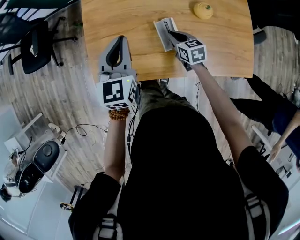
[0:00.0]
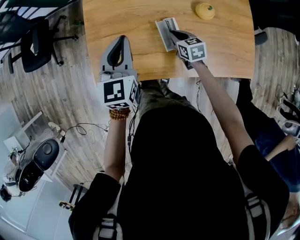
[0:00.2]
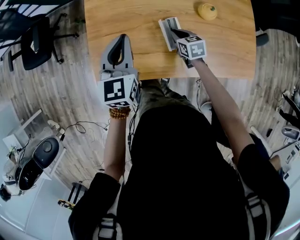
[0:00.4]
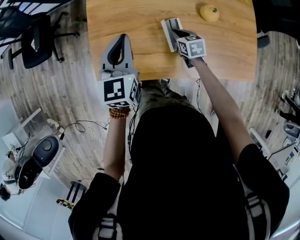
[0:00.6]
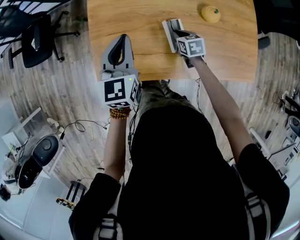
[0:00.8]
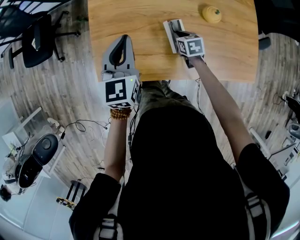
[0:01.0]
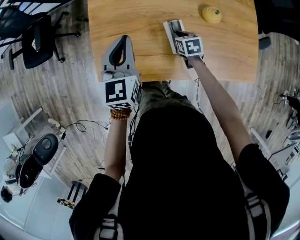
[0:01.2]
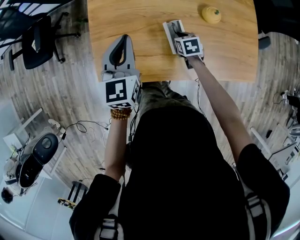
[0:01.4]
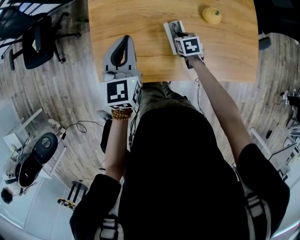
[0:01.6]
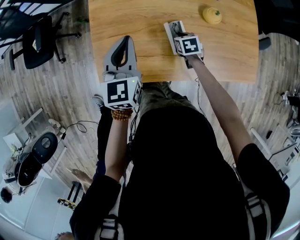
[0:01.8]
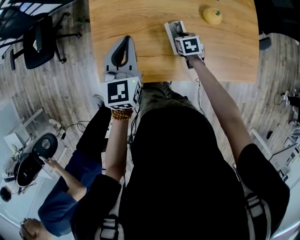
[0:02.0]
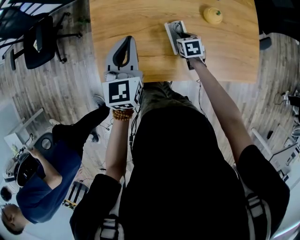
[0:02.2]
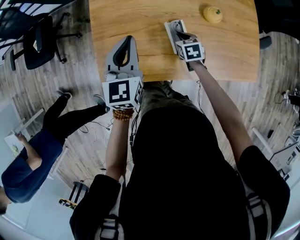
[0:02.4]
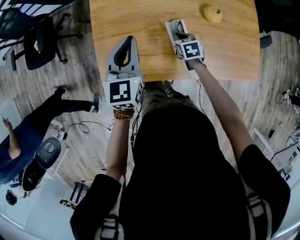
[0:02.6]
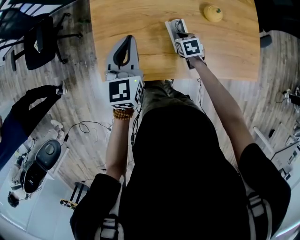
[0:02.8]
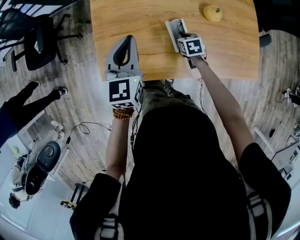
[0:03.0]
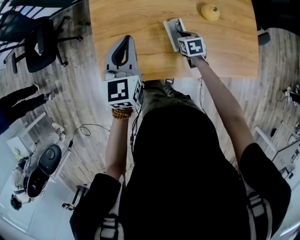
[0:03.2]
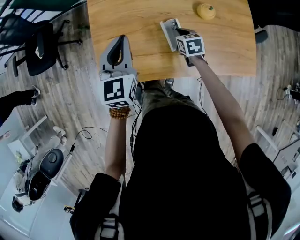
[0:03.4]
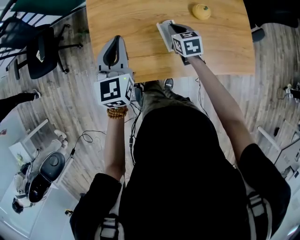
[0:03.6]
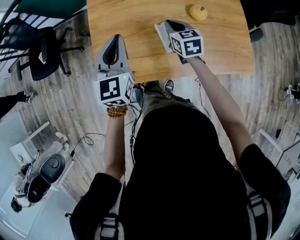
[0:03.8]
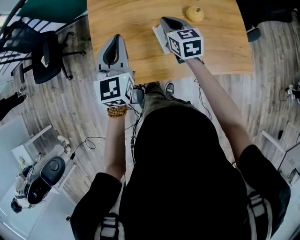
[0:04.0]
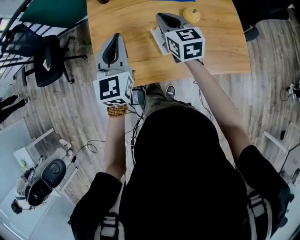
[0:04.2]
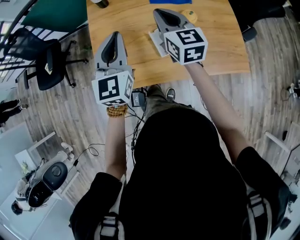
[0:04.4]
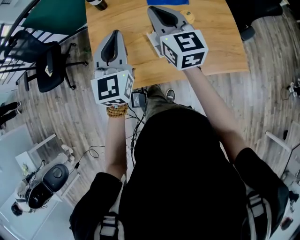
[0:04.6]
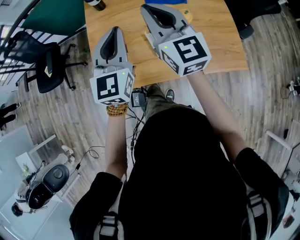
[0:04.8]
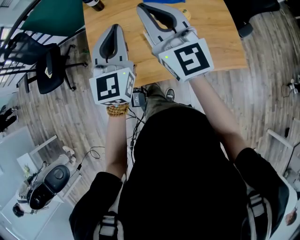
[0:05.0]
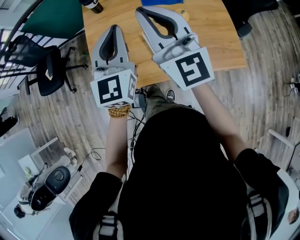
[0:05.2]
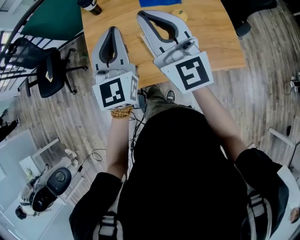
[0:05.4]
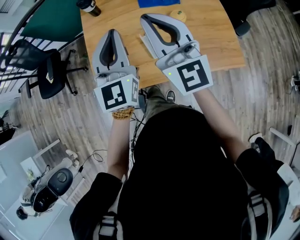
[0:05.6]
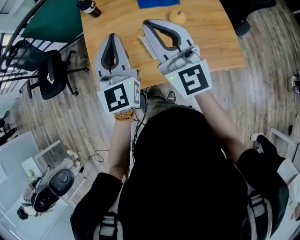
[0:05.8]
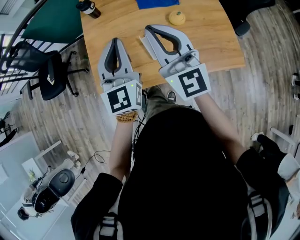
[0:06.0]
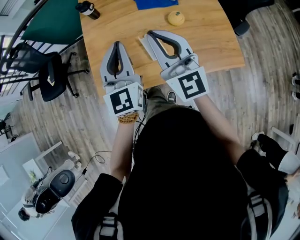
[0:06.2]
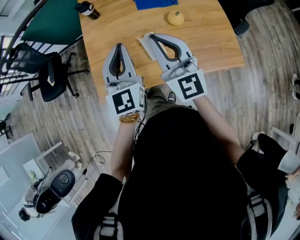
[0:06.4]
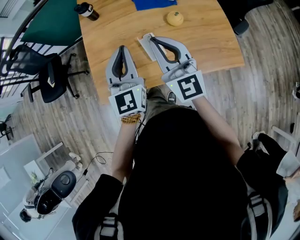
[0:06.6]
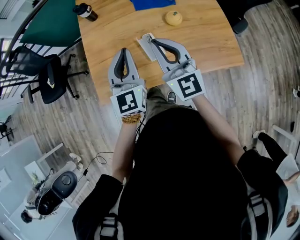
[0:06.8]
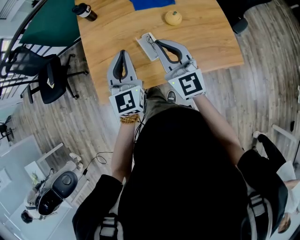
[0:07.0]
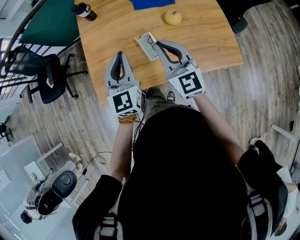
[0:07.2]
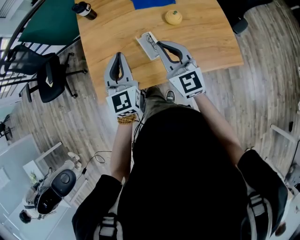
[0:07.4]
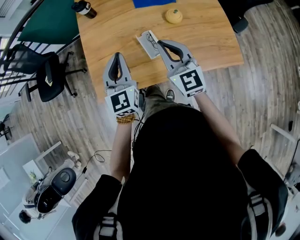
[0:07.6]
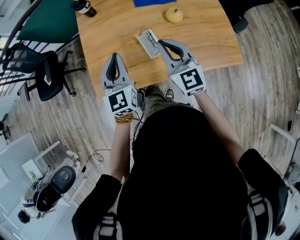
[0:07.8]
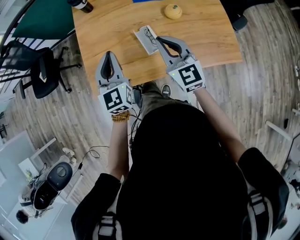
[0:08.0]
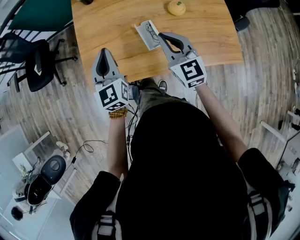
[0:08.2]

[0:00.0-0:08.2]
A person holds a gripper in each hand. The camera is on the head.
0:00.0 to 0:01.6: The right gripper changes place by roughly 5 cm, and swivels approximately 20 degrees.
0:01.6 to 0:03.2: The grippers make only small movements.
0:03.2 to 0:05.0: The left gripper moves upward and to the right, about 20 cm; the right gripper shifts some 50 cm upward, and tips its fingers upward by roughly 70 degrees.
0:05.0 to 0:06.6: The left gripper moves about 5 cm. Meanwhile the right gripper travels downward and backward by approximately 10 cm.
0:06.6 to 0:08.2: The right gripper is displaced downward by some 10 cm, and swivels some 20 degrees; the left gripper is displaced downward and to the left by about 10 cm.

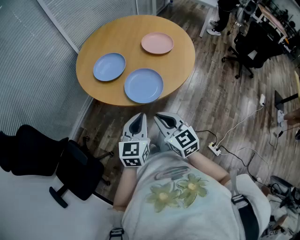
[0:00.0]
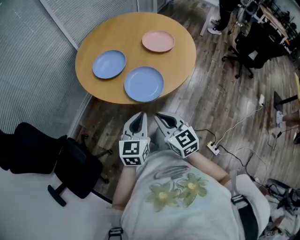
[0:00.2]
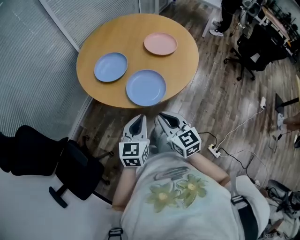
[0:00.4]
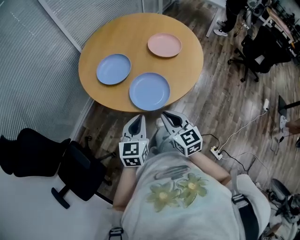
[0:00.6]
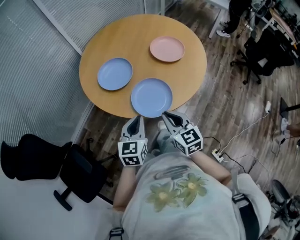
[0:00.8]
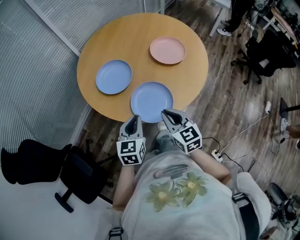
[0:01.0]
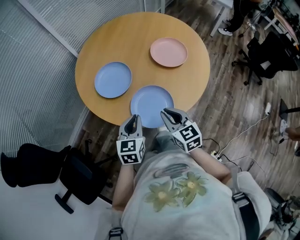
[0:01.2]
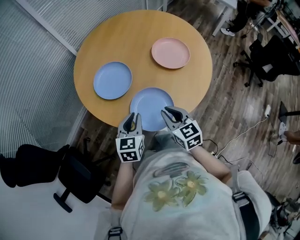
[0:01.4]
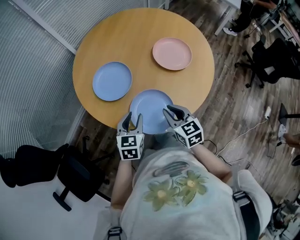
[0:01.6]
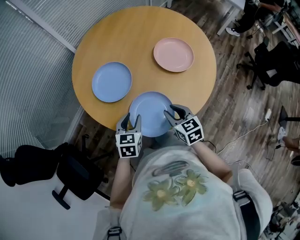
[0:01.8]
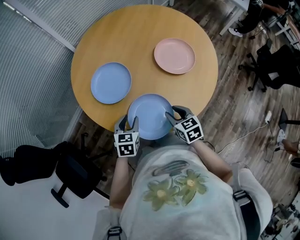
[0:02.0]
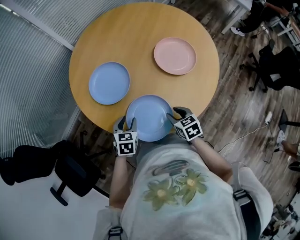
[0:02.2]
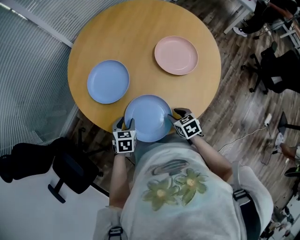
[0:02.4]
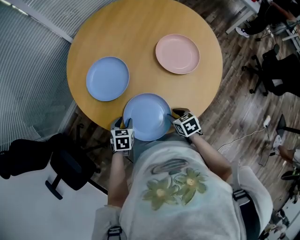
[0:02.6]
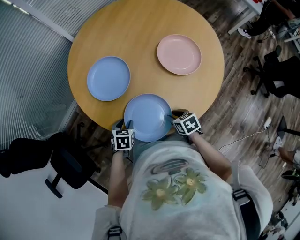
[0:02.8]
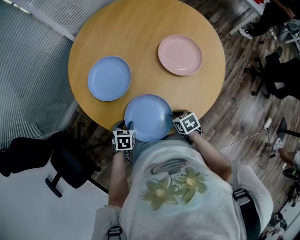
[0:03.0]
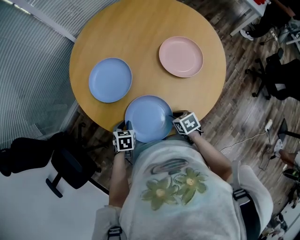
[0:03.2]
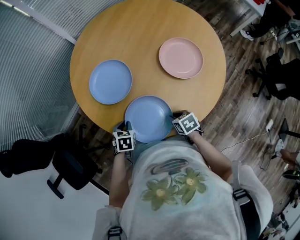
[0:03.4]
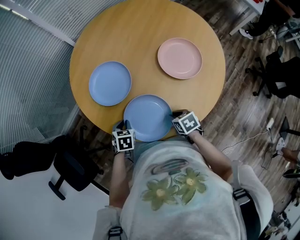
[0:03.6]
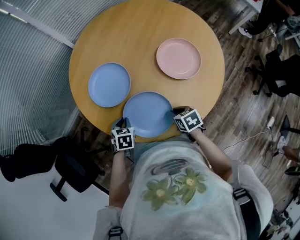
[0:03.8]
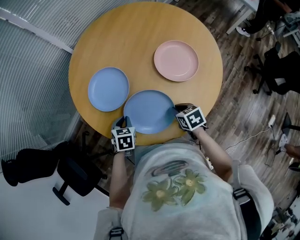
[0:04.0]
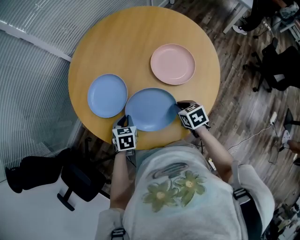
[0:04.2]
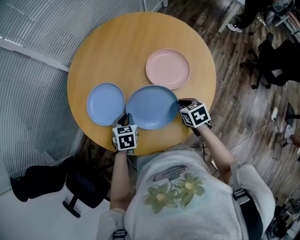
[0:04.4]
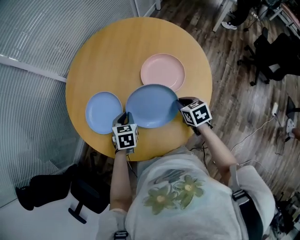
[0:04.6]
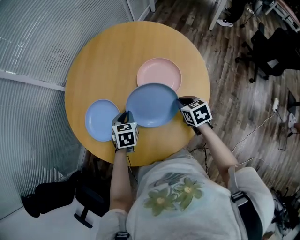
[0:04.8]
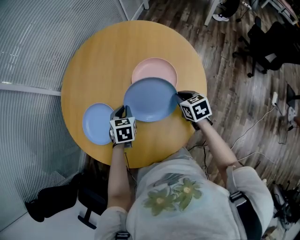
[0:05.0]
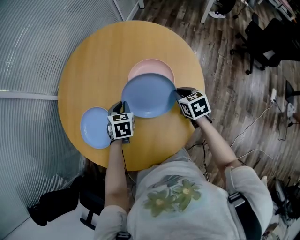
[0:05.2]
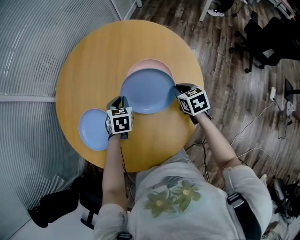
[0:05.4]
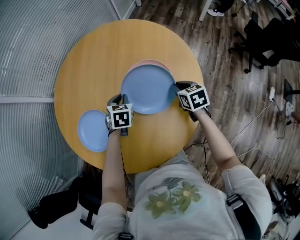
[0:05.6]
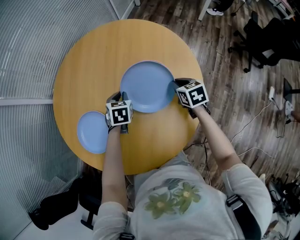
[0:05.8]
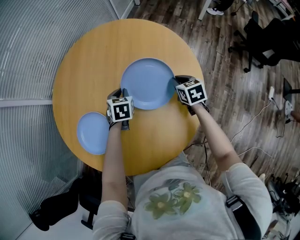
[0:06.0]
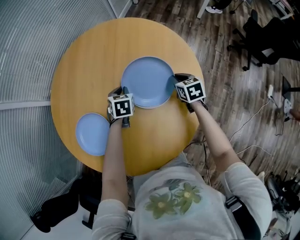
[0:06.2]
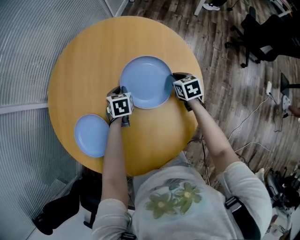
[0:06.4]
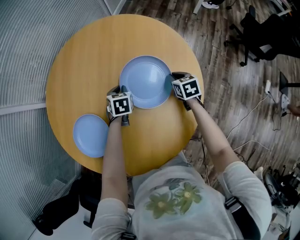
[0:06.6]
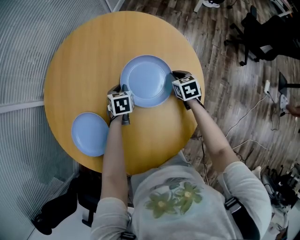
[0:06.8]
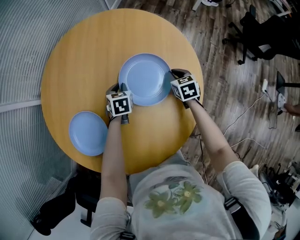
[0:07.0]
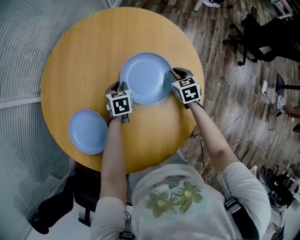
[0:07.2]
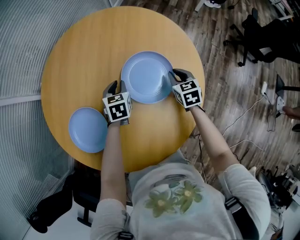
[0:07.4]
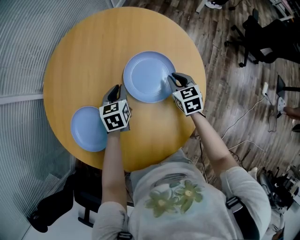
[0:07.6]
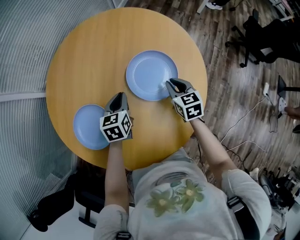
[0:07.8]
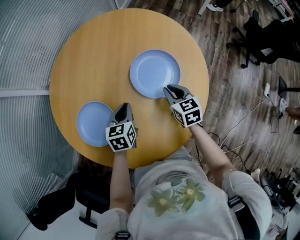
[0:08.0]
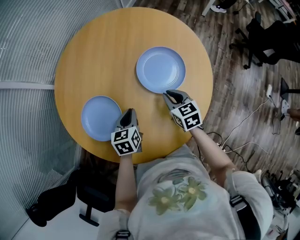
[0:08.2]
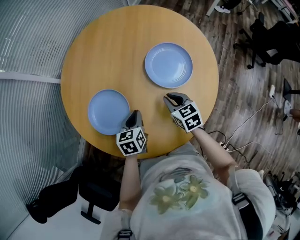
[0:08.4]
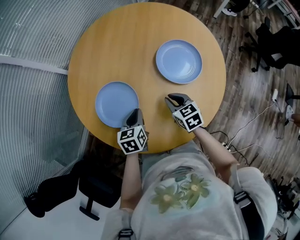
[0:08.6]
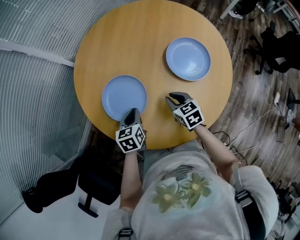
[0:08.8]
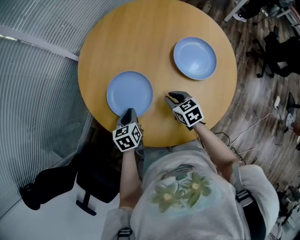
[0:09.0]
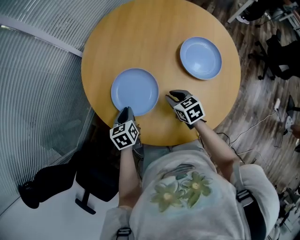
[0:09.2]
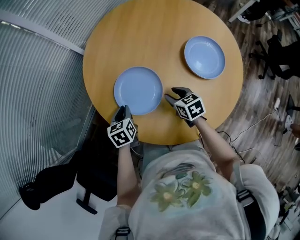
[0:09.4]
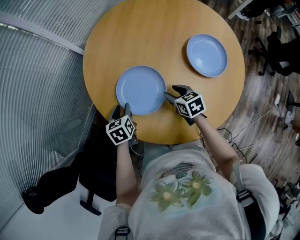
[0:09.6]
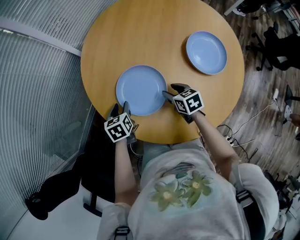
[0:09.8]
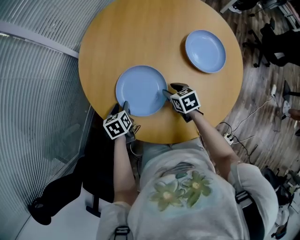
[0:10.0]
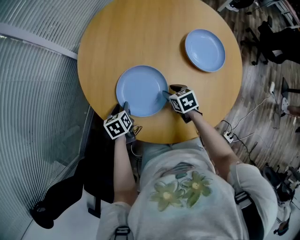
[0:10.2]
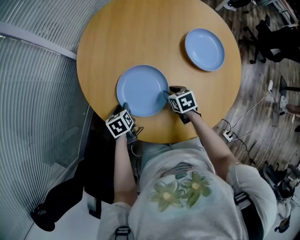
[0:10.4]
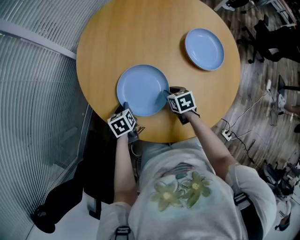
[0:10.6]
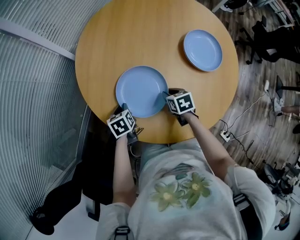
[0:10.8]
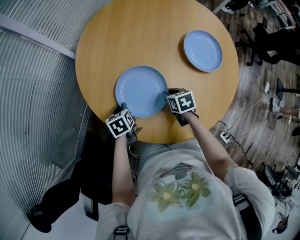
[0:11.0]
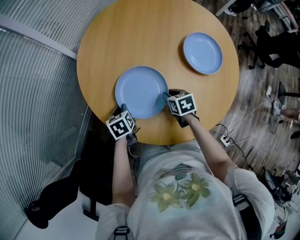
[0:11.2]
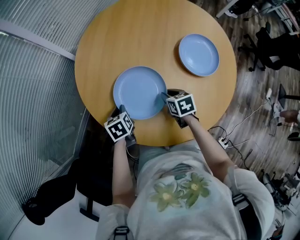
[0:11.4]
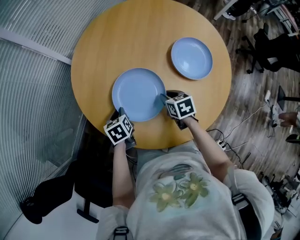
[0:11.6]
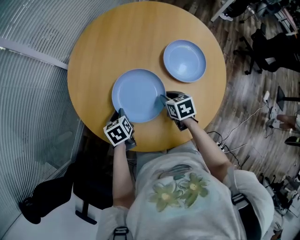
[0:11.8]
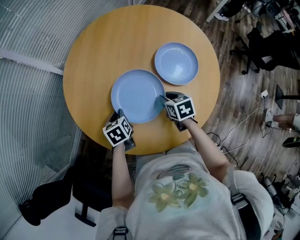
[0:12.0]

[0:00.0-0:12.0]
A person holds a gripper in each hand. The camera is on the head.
0:00.0 to 0:01.6: The two grippers go approximately 35 cm forward. The left gripper opens its fingers.
0:01.6 to 0:03.0: The left gripper moves downward, approximately 15 cm, and changes its angle by about 30 degrees. The right gripper heads downward and to the right, covering approximately 20 cm, and rotates some 40 degrees.
0:03.0 to 0:04.4: The right gripper heads to the right, upward and forward, covering roughly 20 cm. Meanwhile the left gripper shifts roughly 20 cm to the right, forward and upward, and closes up.
0:04.4 to 0:06.0: The two grippers go about 30 cm forward and to the right.
0:06.0 to 0:07.6: The left gripper goes downward and returns, roughly 10 cm each way.
0:07.6 to 0:09.0: The two grippers go roughly 40 cm to the left and backward. The right gripper changes its angle by approximately 20 degrees.
0:09.0 to 0:10.4: The right gripper travels to the left, downward and forward by some 15 cm, swivels some 20 degrees, and opens up, while the left gripper goes some 20 cm to the left, forward and downward, and opens.
0:10.4 to 0:12.0: The grippers both shift to the right and upward by about 20 cm.

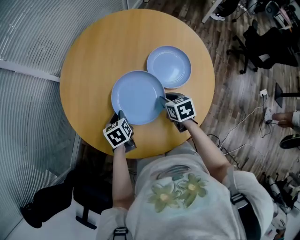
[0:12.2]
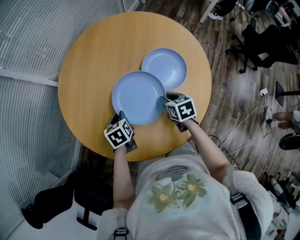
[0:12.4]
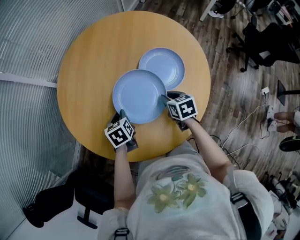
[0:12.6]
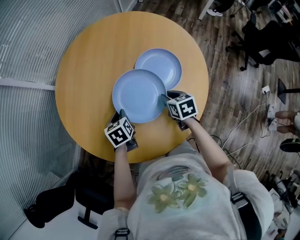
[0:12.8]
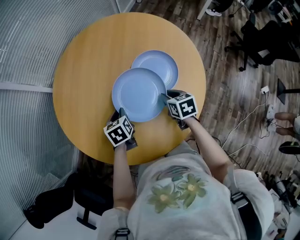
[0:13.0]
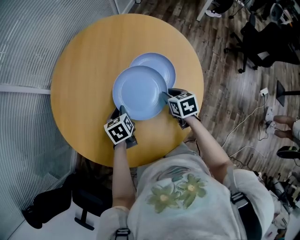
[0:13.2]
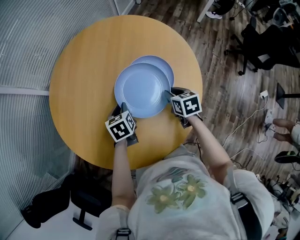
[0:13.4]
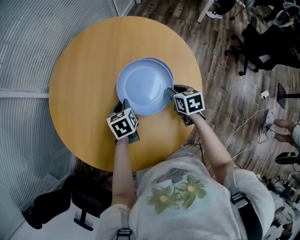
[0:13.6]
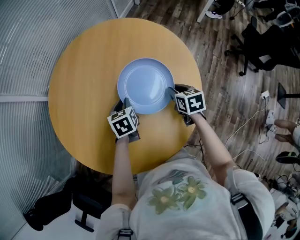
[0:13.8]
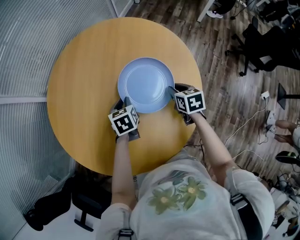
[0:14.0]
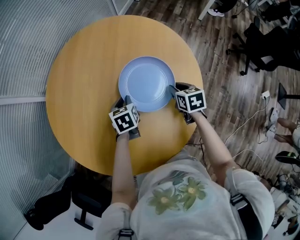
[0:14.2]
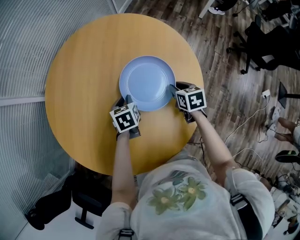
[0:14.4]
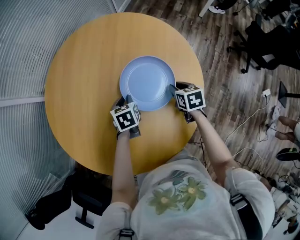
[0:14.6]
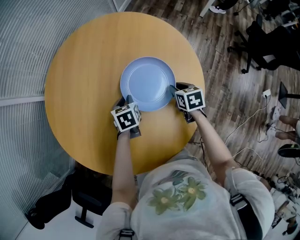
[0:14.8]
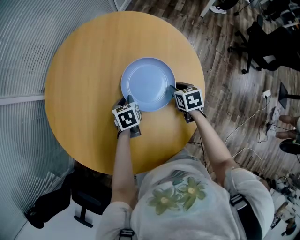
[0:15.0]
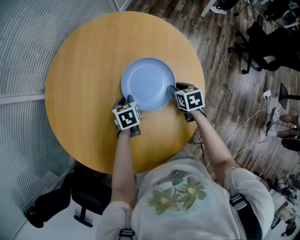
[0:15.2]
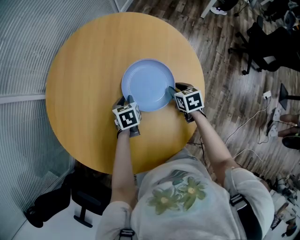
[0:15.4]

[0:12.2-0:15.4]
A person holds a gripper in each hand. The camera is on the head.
0:12.2 to 0:13.8: The grippers both shift to the right by approximately 30 cm.
0:13.8 to 0:15.4: Both grippers move downward, roughly 5 cm.
